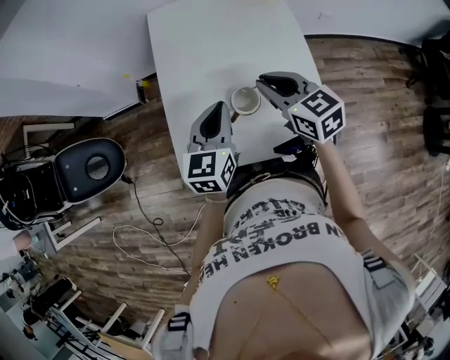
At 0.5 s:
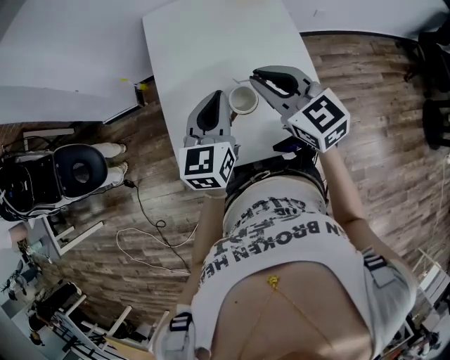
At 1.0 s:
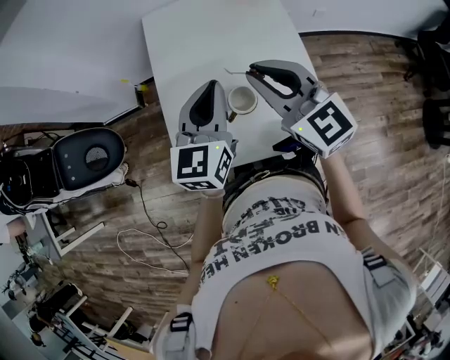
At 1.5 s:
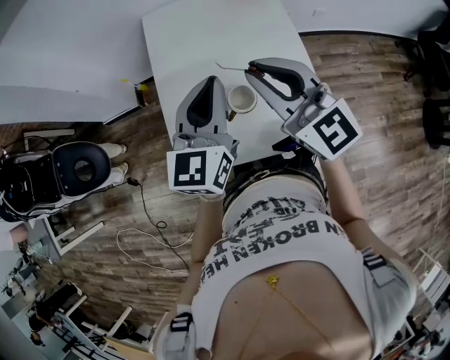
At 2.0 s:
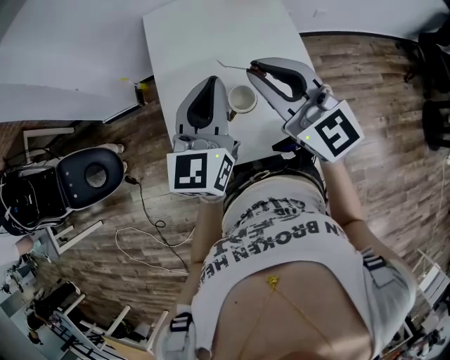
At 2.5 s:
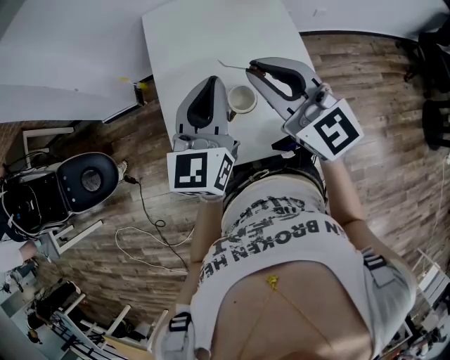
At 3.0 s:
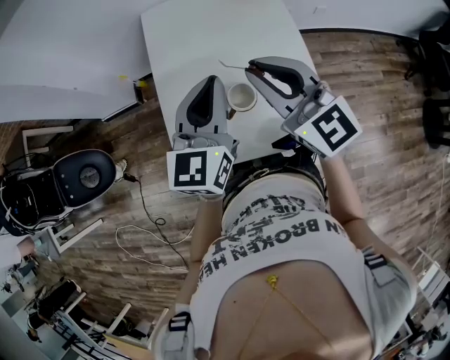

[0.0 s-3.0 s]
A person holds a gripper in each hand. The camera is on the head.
0.0 to 1.5 s: Both grippers travel together upward, roughly 10 cm. The right gripper rotates approximately 30 degrees.
1.5 to 3.0 s: Both grippers stay put.

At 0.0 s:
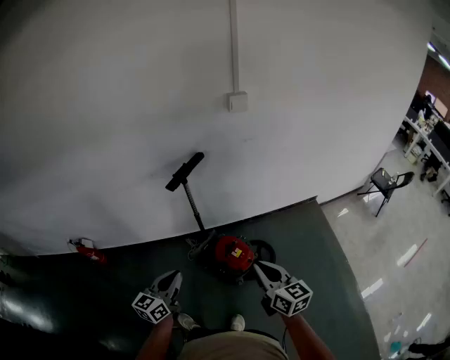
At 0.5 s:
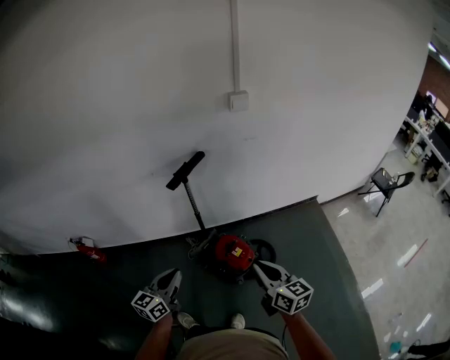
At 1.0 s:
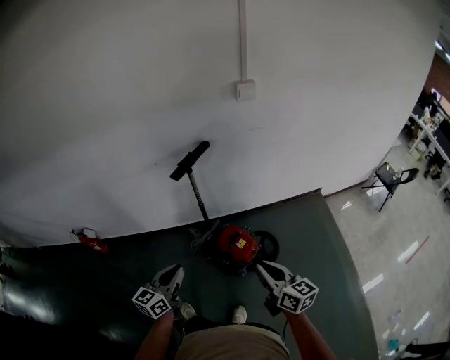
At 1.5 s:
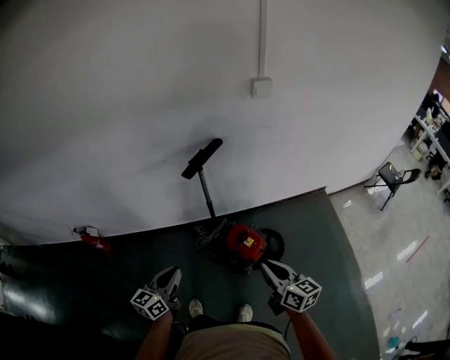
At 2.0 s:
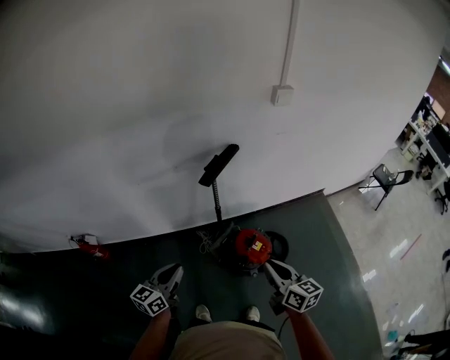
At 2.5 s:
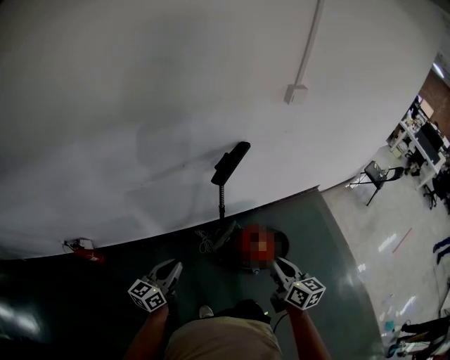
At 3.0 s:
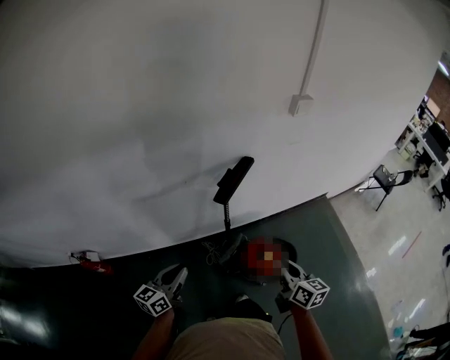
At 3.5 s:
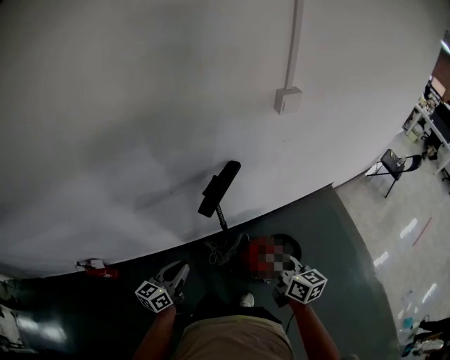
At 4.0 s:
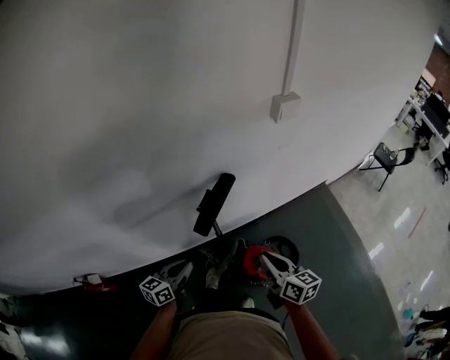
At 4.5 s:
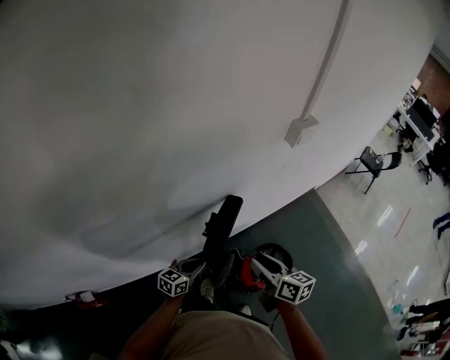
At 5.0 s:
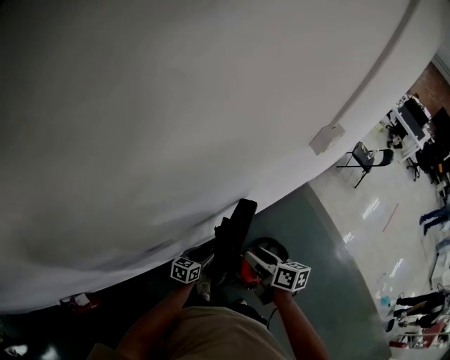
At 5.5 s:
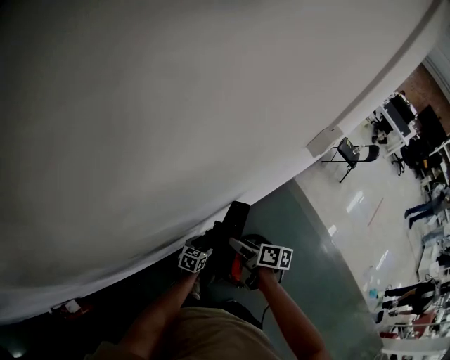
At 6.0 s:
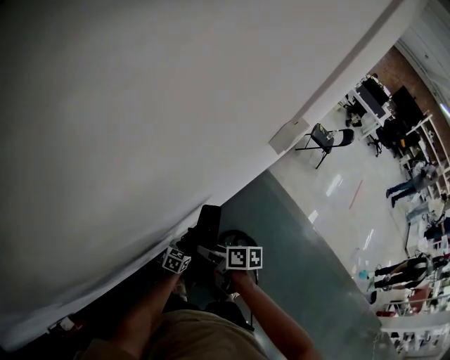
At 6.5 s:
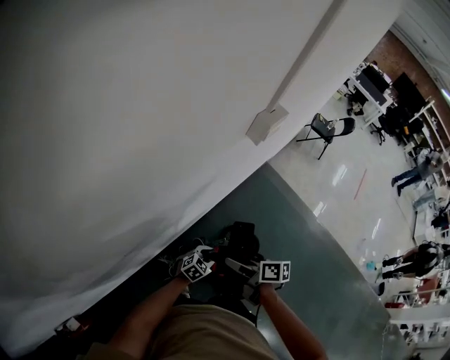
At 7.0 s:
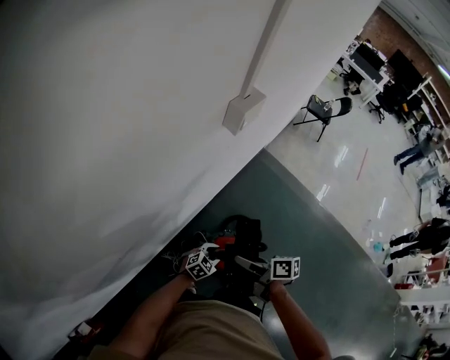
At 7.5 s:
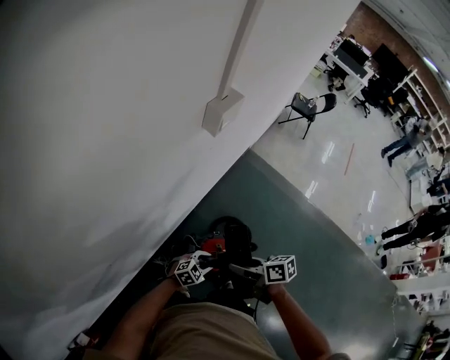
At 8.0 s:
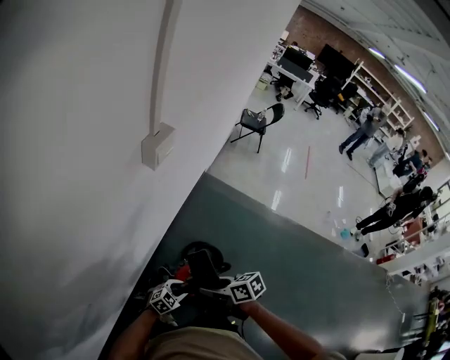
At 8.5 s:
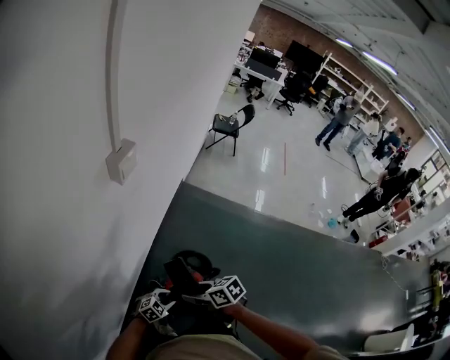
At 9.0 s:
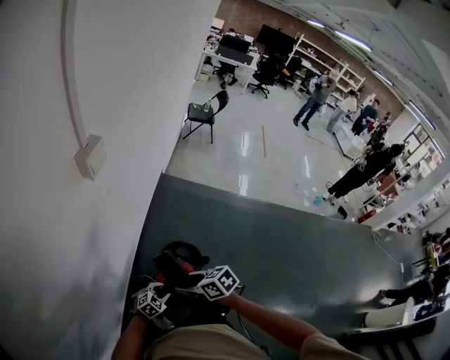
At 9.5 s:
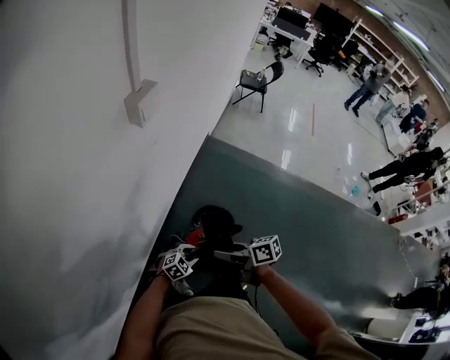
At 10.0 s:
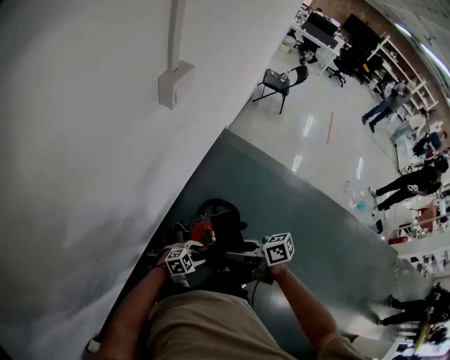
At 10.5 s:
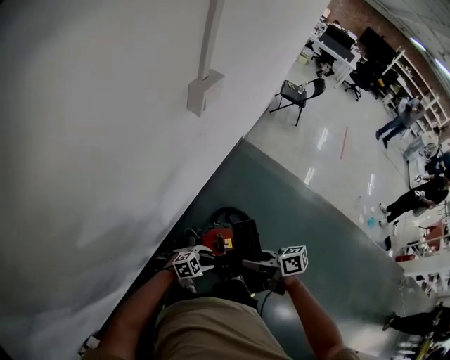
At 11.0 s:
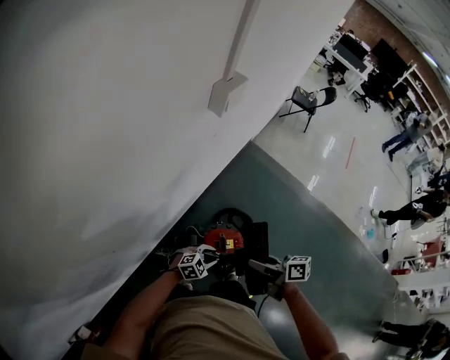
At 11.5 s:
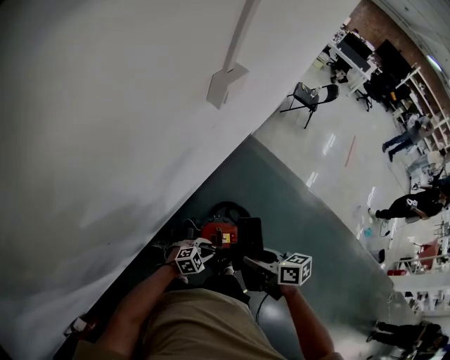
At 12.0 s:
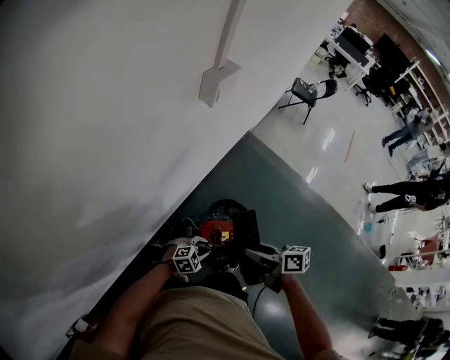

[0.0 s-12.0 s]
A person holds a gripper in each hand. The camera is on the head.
0.0 to 2.0 s: The grippers both shift to the left by roughly 15 cm.
2.0 to 4.0 s: Both grippers travel together forward, roughly 25 cm.
4.0 to 6.0 s: The right gripper moves forward, to the left and downward, roughly 30 cm, swivels about 30 degrees, and opens its fingers, while the left gripper heads forward and downward, covering roughly 35 cm, rotates about 40 degrees, and opens up.
6.0 to 8.0 s: The right gripper moves approximately 25 cm. Meanwhile the left gripper ends up roughly 25 cm from where it was, and turns by some 50 degrees.
8.0 to 10.0 s: The left gripper moves some 5 cm.

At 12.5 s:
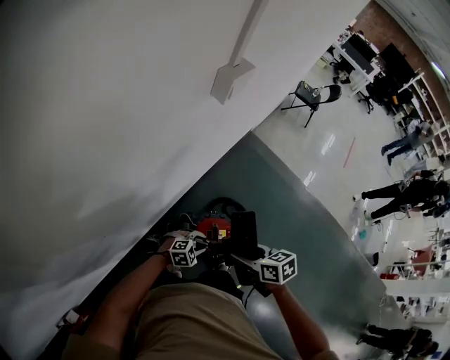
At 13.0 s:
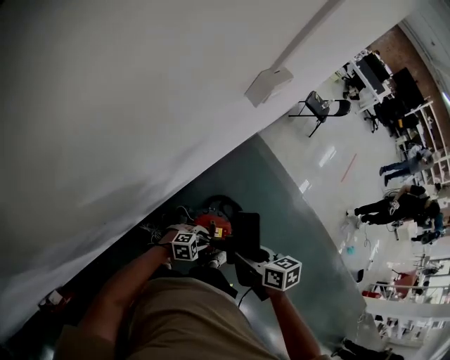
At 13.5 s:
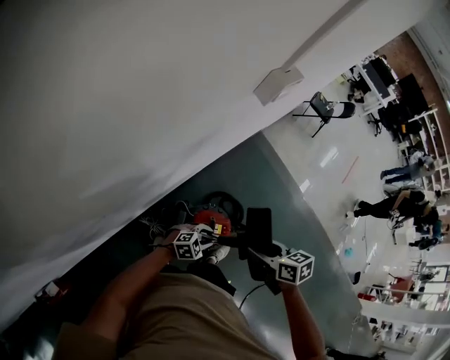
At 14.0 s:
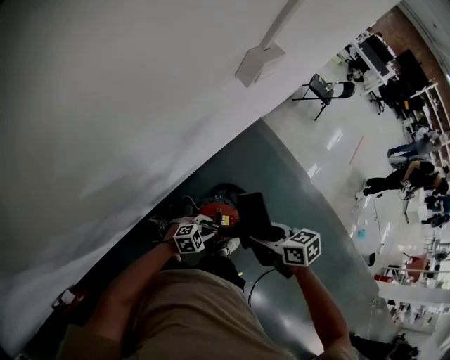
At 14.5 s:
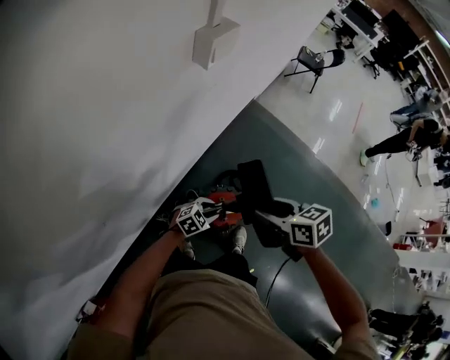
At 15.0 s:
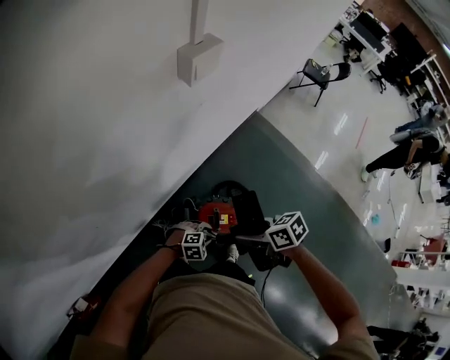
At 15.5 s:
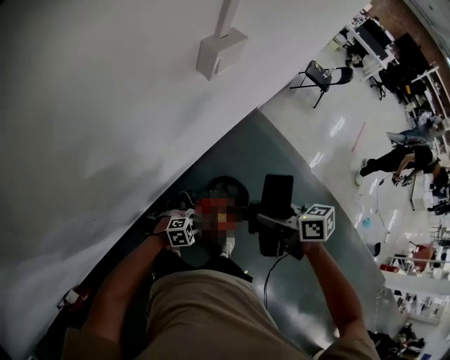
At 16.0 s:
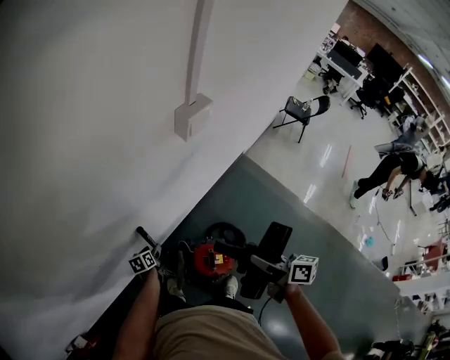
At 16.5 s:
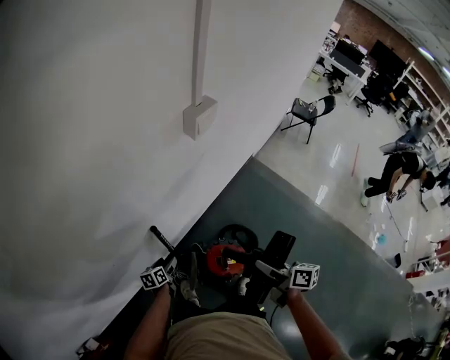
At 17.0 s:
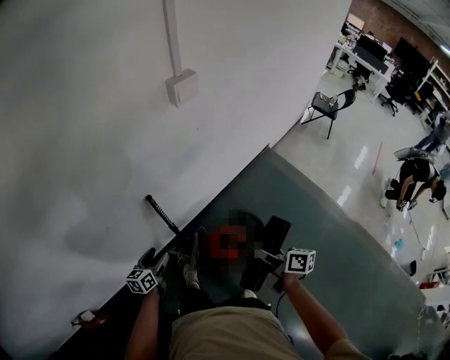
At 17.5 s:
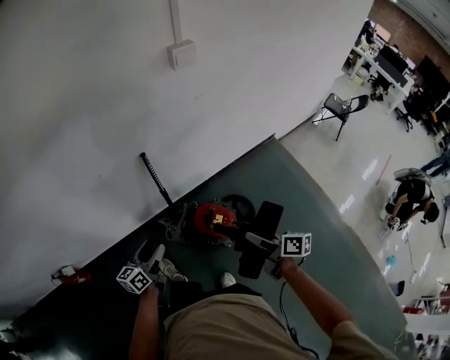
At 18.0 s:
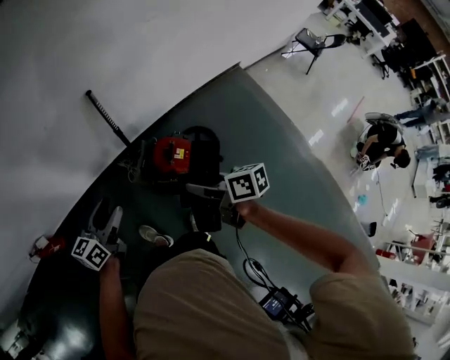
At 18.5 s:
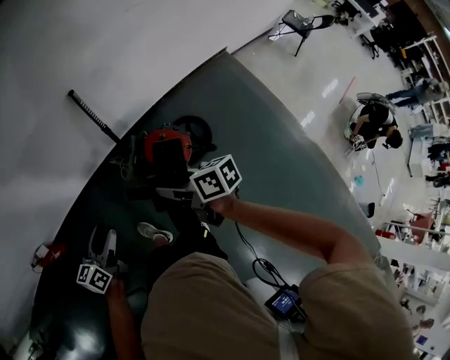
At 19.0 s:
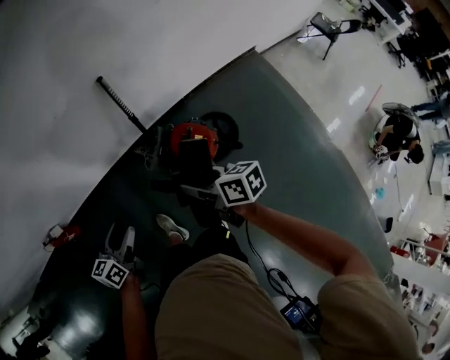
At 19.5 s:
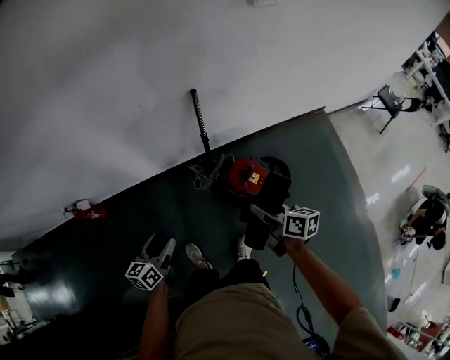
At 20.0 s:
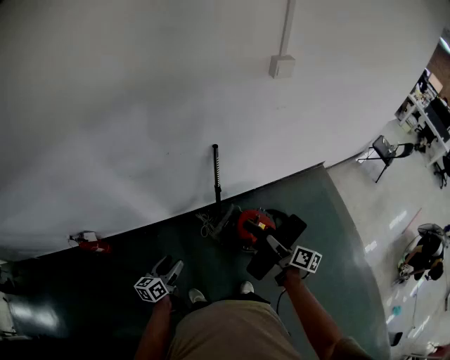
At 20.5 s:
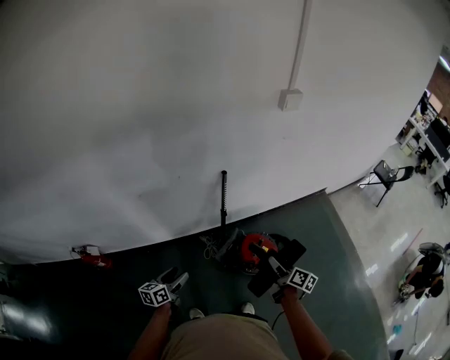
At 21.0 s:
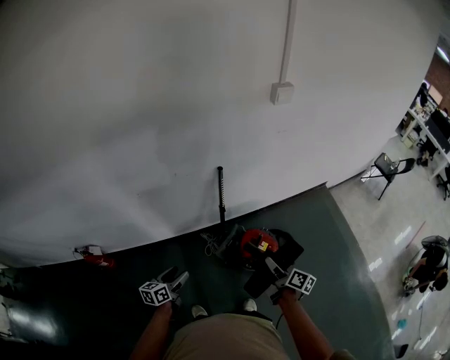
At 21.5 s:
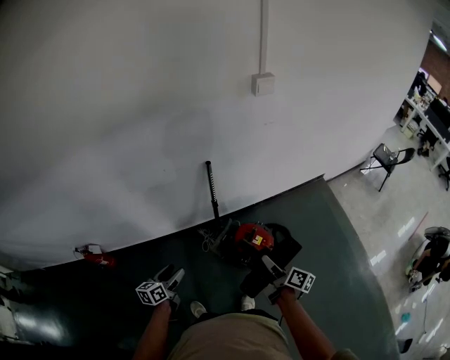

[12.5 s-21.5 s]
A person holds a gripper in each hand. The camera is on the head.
12.5 to 14.5 s: The right gripper ends up approximately 10 cm from where it was.
14.5 to 17.0 s: The right gripper swings up and down, some 10 cm each way, with 2 reversals, and turns by roughly 40 degrees, while the left gripper moves about 20 cm, changes its angle by approximately 80 degrees, and opens.
17.0 to 19.5 s: The left gripper heads backward, covering some 30 cm, and changes its angle by roughly 30 degrees, while the right gripper moves to the left, backward and downward, approximately 15 cm, and rotates approximately 30 degrees.
19.5 to 21.5 s: The right gripper shifts by roughly 5 cm, and swivels some 30 degrees.

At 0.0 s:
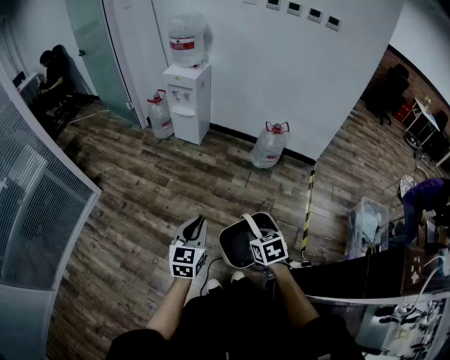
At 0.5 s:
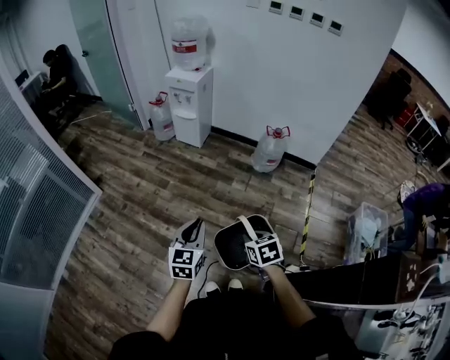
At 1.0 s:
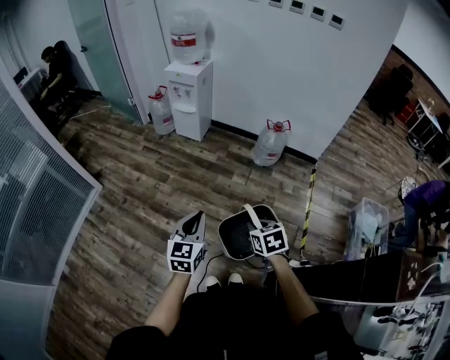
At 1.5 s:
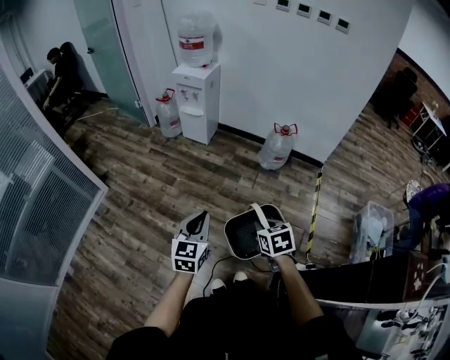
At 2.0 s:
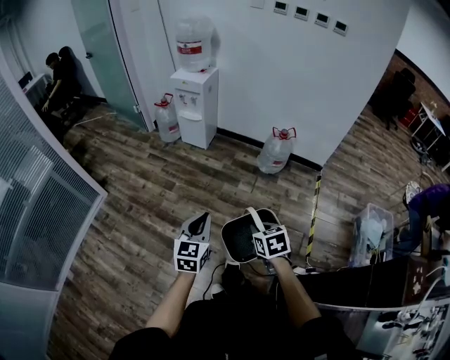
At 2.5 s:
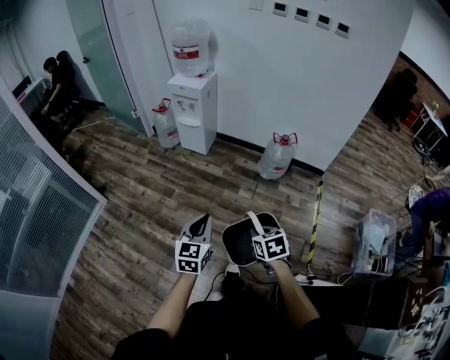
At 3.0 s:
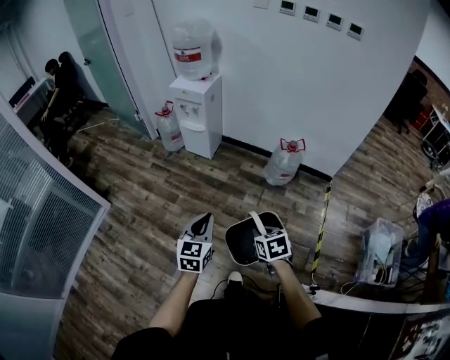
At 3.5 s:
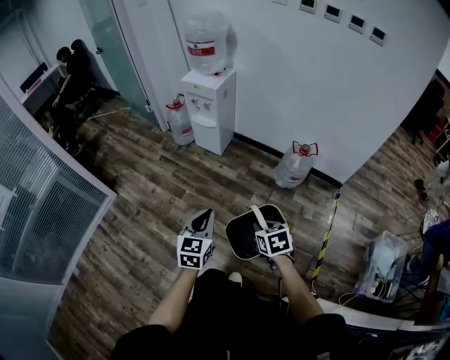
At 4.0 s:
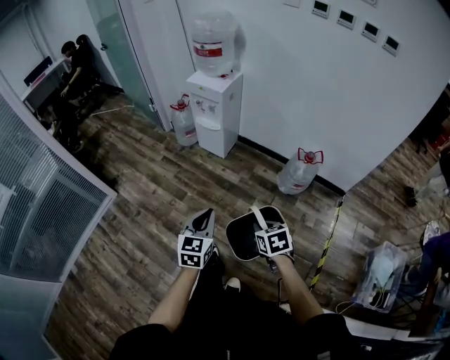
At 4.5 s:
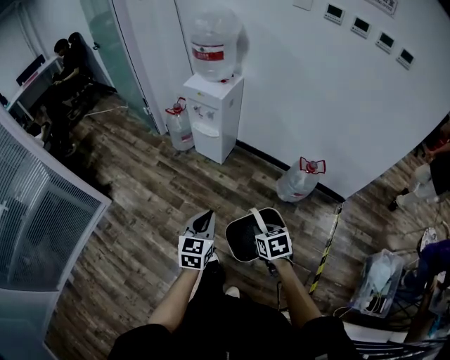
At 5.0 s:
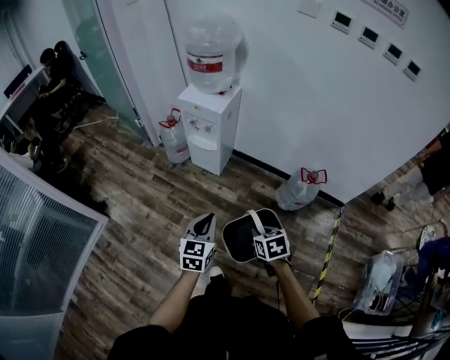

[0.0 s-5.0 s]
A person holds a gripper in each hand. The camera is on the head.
0.0 to 2.5 s: Both grippers move forward, about 10 cm.
2.5 to 5.0 s: The two grippers go roughly 35 cm forward.
